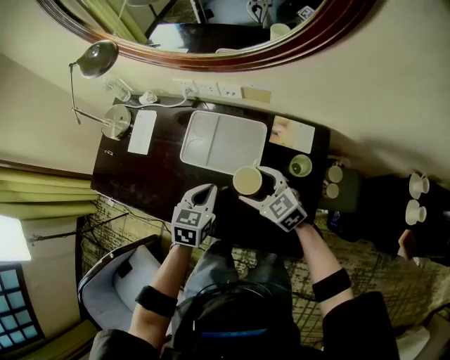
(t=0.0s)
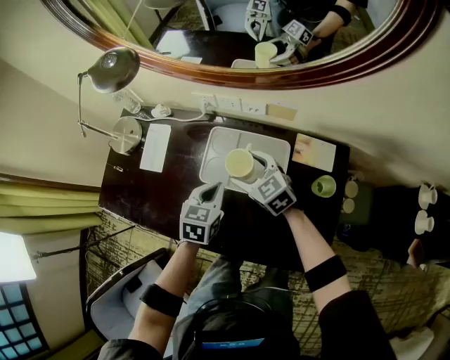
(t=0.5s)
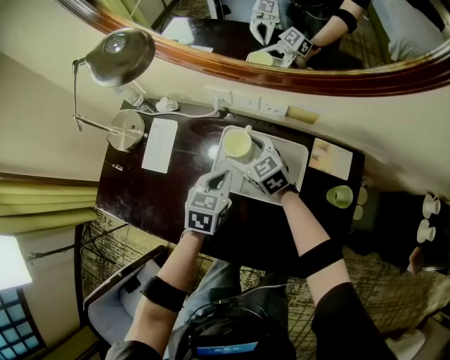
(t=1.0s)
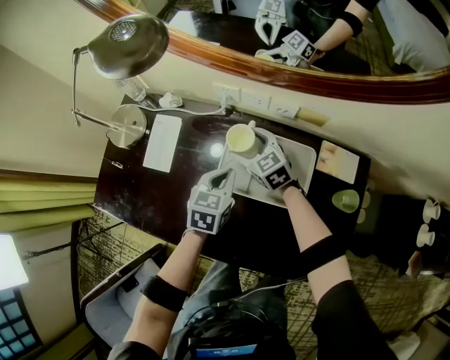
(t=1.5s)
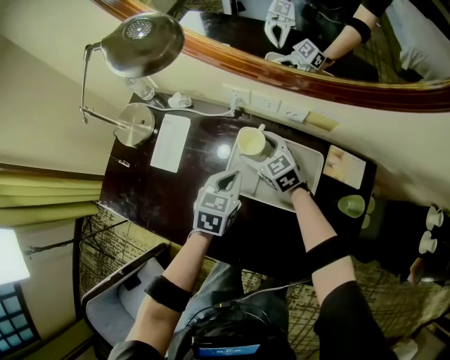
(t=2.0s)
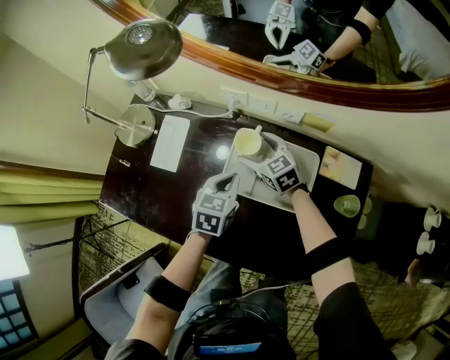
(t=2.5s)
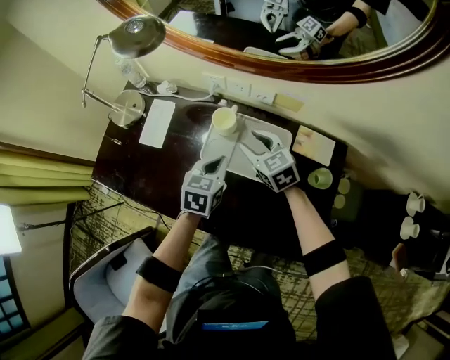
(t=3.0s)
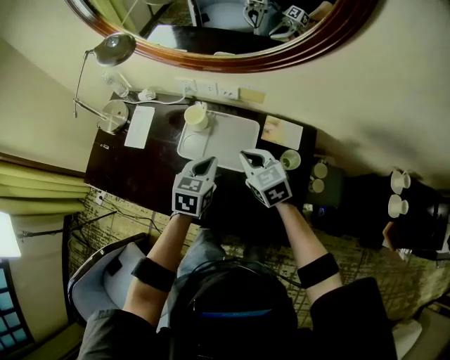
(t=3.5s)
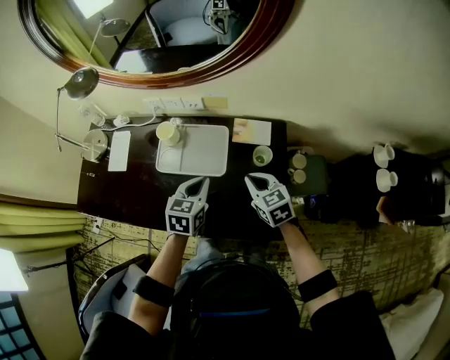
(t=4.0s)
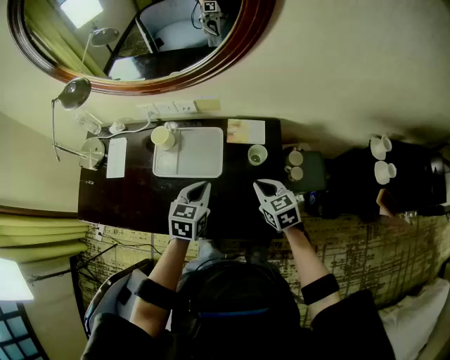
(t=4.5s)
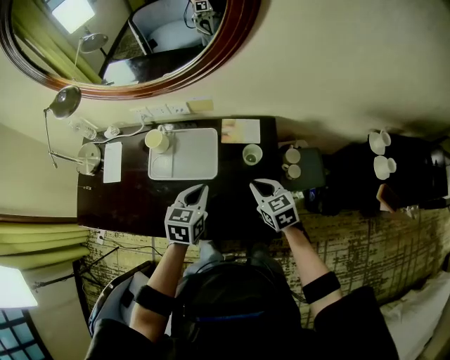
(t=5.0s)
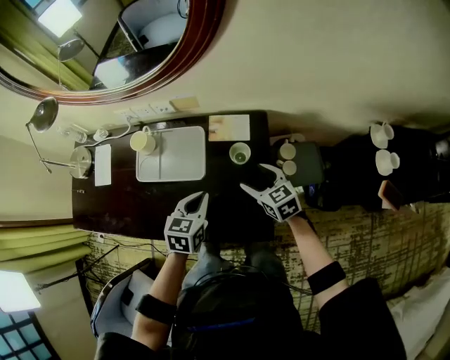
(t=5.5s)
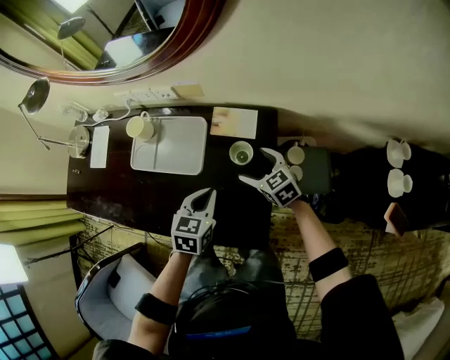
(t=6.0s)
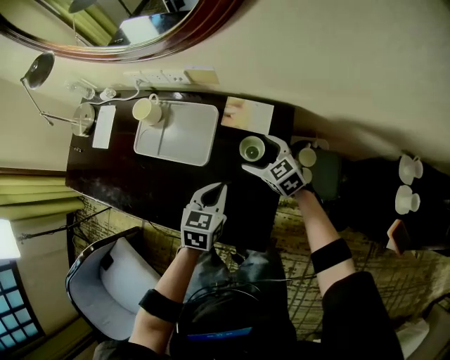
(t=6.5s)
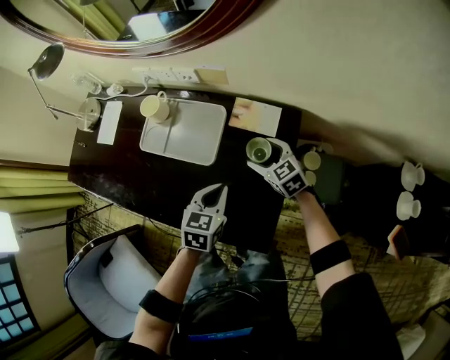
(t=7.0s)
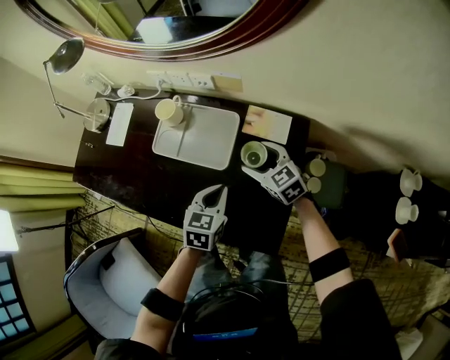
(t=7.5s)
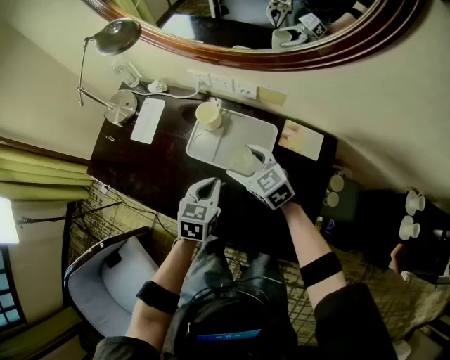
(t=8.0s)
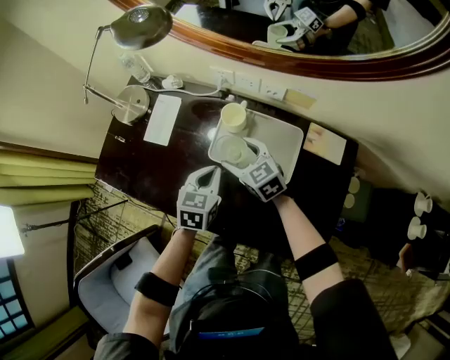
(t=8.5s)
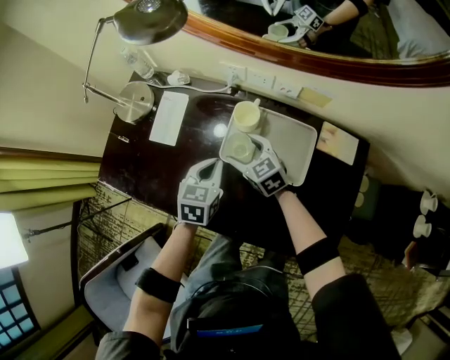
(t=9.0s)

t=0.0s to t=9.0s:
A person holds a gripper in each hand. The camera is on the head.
t=0.0s to t=2.0s: The right gripper goes roughly 30 cm forward and to the left; the left gripper is displaced forward and to the left by some 20 cm.
t=2.0s to t=4.5s: The left gripper shifts some 30 cm to the right, backward and upward. Meanwhile the right gripper heads to the right and backward, covering roughly 50 cm, swivels approximately 30 degrees, and closes.
t=4.5s to t=7.0s: The left gripper shifts approximately 15 cm to the right and downward. The right gripper is displaced forward and downward by roughly 15 cm, changes its angle by some 30 degrees, and opens its fingers.
t=7.0s to t=9.0s: The two grippers go some 40 cm to the left and forward.

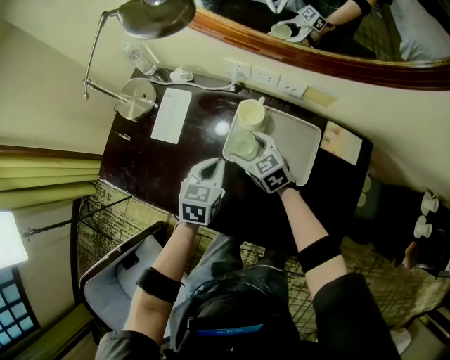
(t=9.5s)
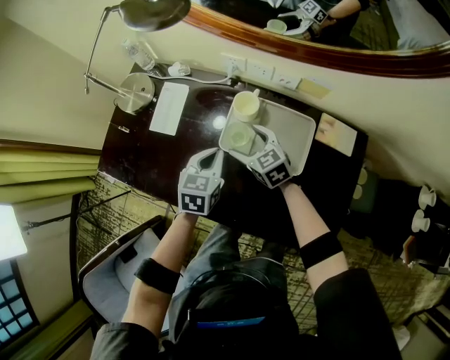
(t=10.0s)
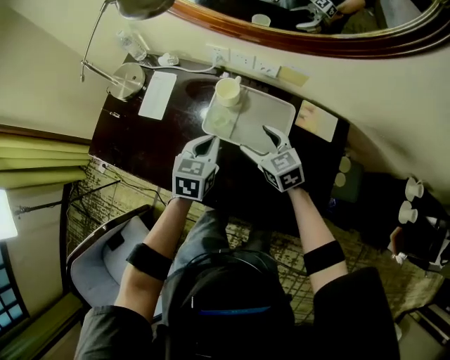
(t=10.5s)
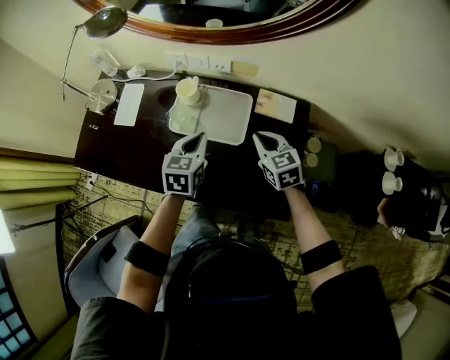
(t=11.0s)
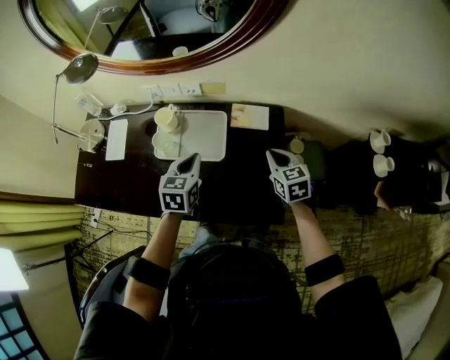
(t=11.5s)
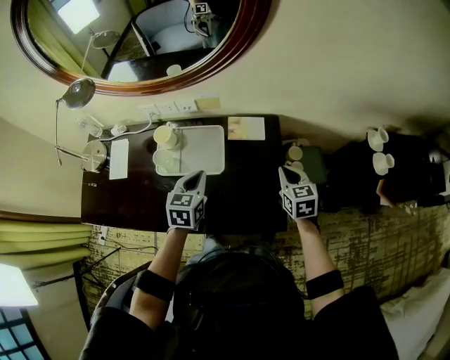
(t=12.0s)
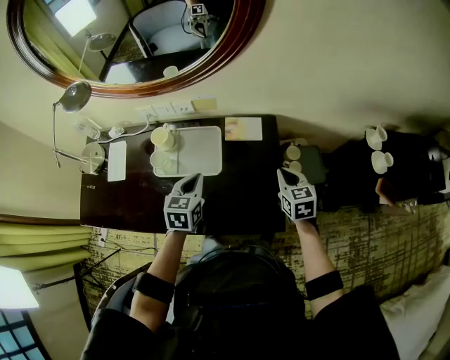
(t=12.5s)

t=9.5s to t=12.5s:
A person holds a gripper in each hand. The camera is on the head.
t=9.5s to t=11.0s: The left gripper shifts roughly 20 cm to the right, upward and backward. Meanwhile the right gripper travels to the right, backward and upward by roughly 30 cm, and closes up.
t=11.0s to t=12.5s: The left gripper moves to the right, roughly 10 cm. Meanwhile the right gripper heads to the right, covering about 20 cm, and changes its angle by roughly 30 degrees.

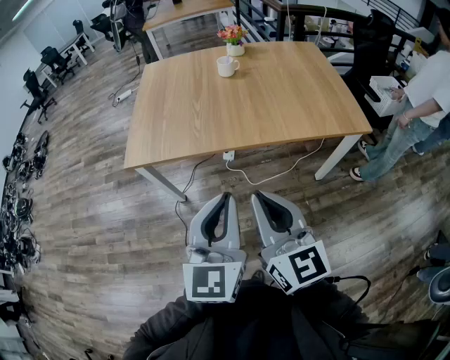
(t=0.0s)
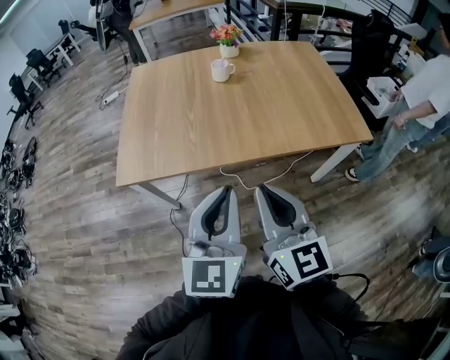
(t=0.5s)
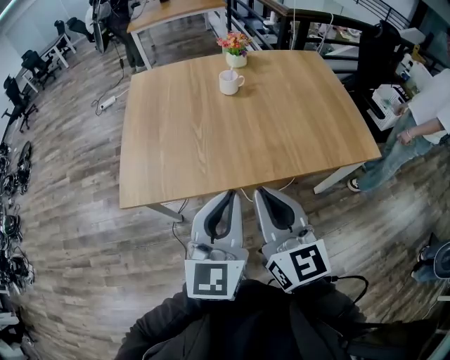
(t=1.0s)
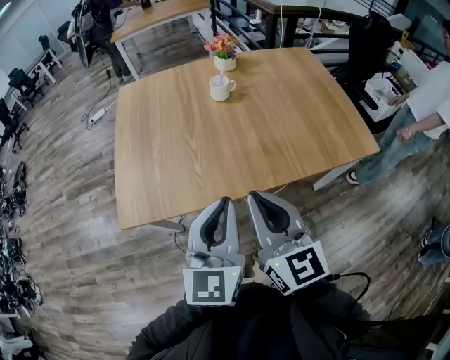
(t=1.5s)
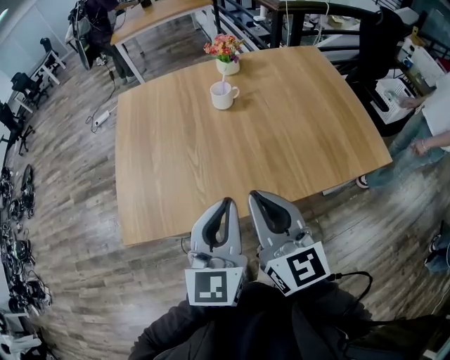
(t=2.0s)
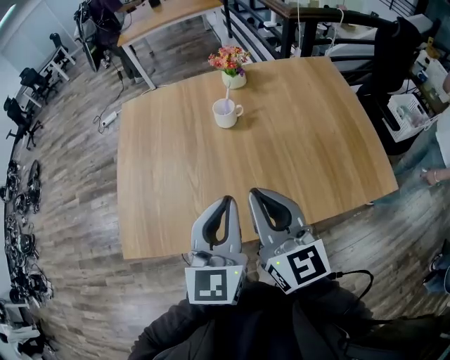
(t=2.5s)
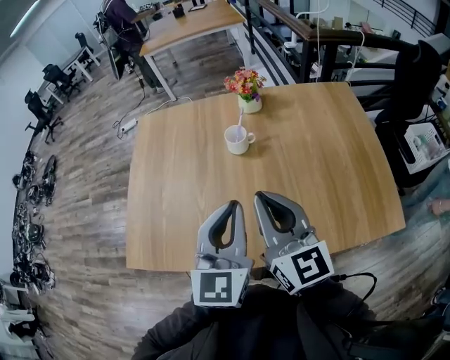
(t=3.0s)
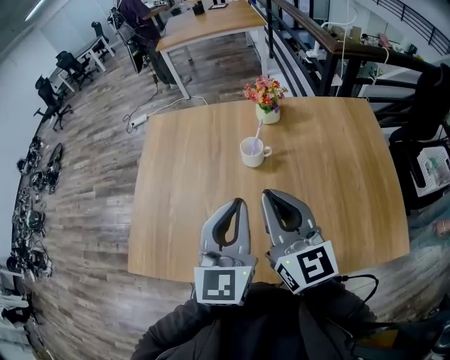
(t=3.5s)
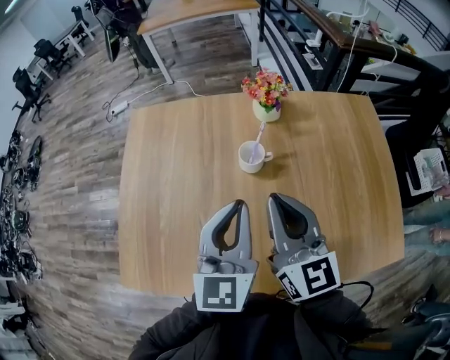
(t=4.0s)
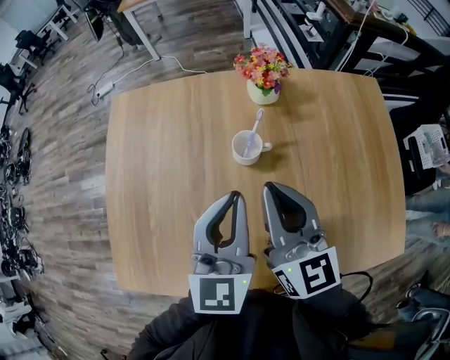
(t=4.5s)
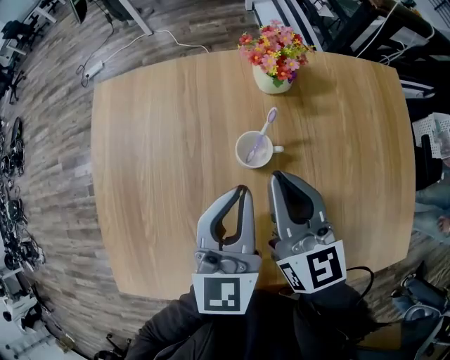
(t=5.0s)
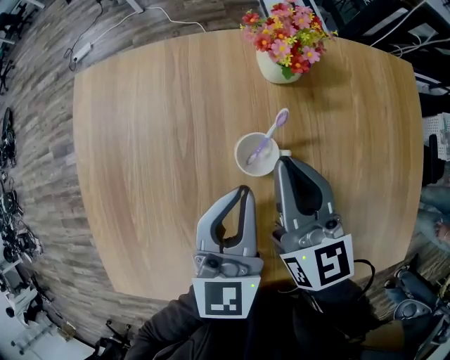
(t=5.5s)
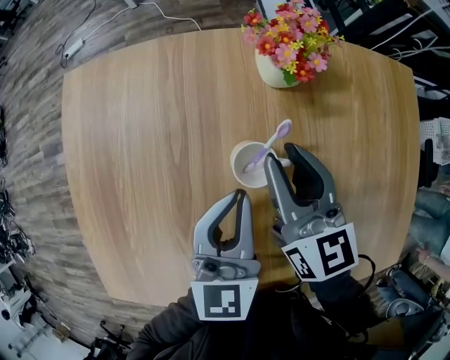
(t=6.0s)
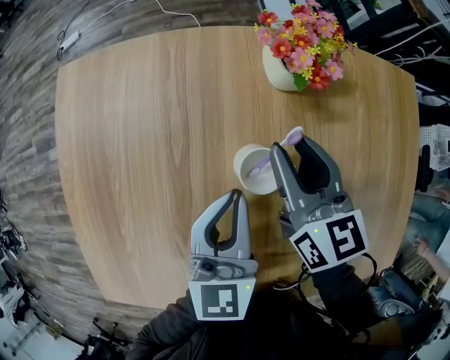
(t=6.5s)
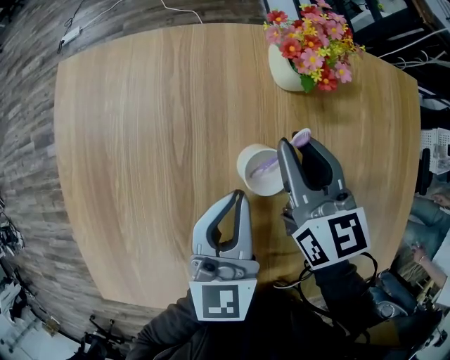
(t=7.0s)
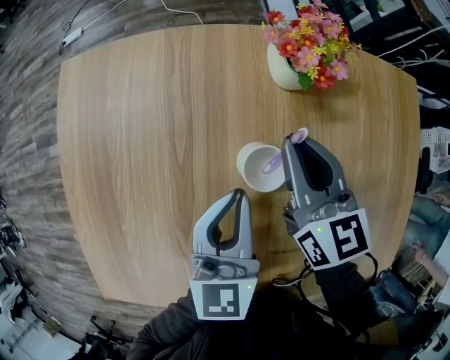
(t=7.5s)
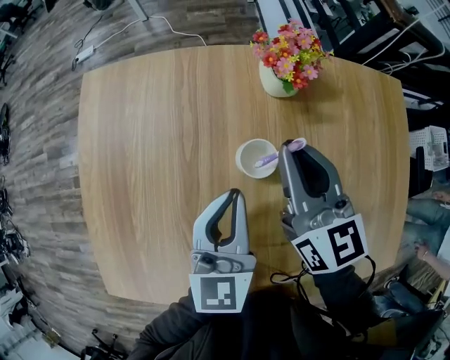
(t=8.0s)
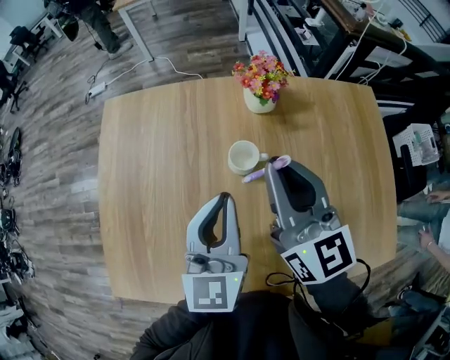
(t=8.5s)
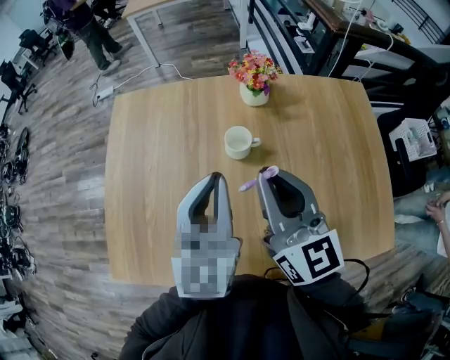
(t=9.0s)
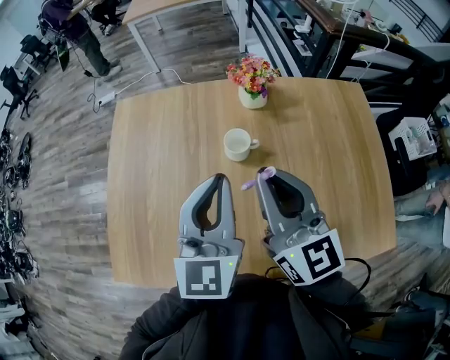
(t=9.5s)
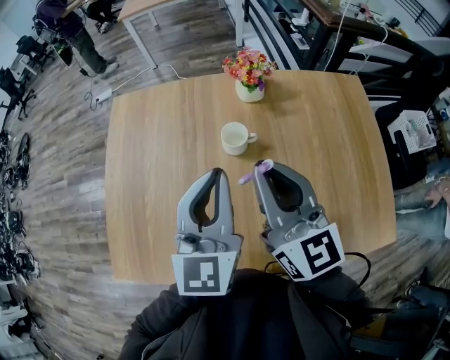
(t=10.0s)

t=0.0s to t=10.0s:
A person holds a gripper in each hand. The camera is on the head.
t=0.0s to t=2.0s: The two grippers go some 30 cm forward.
t=2.0s to t=4.0s: The grippers both shift forward by about 30 cm.
t=4.0s to t=6.0s: Both grippers move forward and downward, some 25 cm. The right gripper opens its fingers.
t=6.0s to t=8.0s: The right gripper travels upward by roughly 5 cm, and closes up.
t=8.0s to t=10.0s: The left gripper heads upward and backward, covering some 20 cm, while the right gripper goes some 20 cm backward and upward.

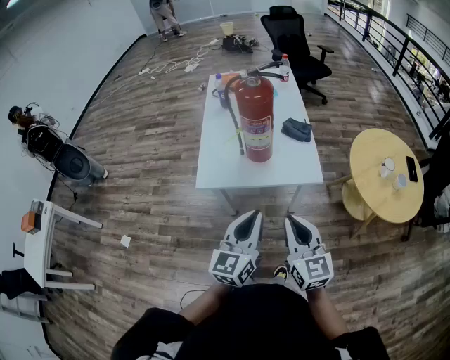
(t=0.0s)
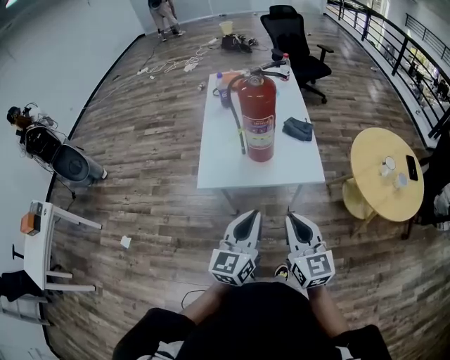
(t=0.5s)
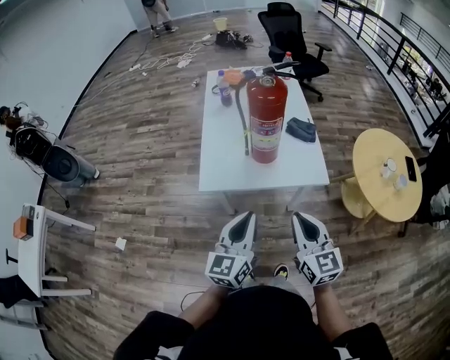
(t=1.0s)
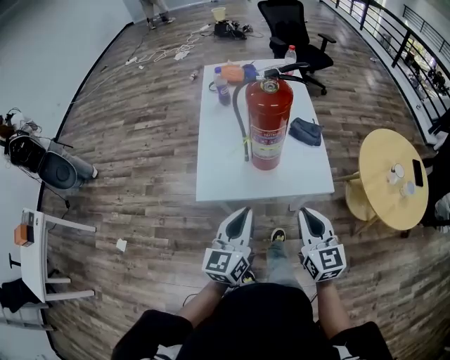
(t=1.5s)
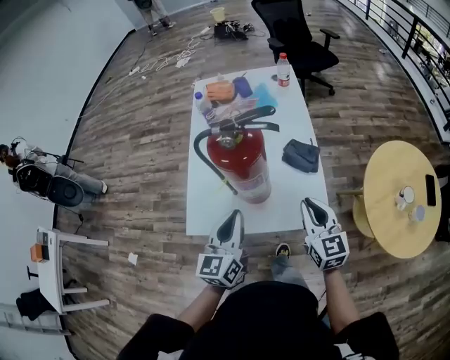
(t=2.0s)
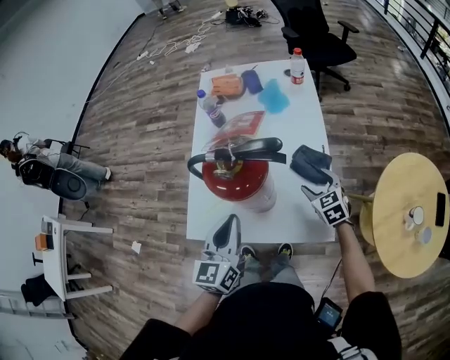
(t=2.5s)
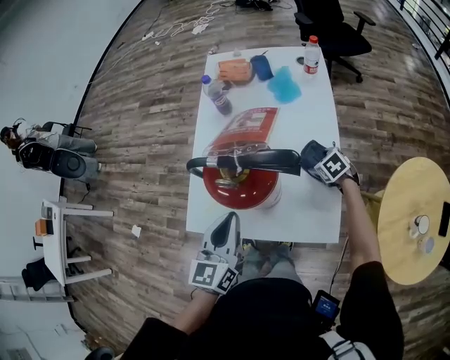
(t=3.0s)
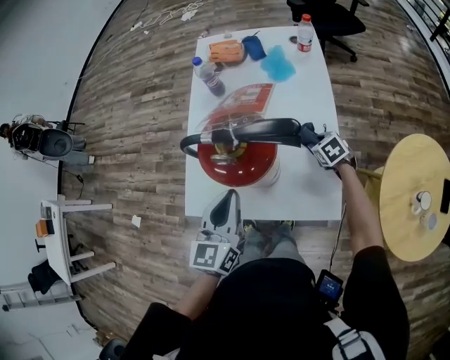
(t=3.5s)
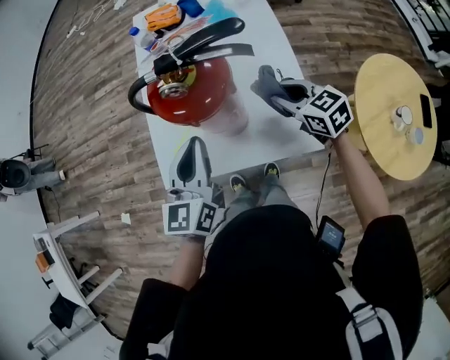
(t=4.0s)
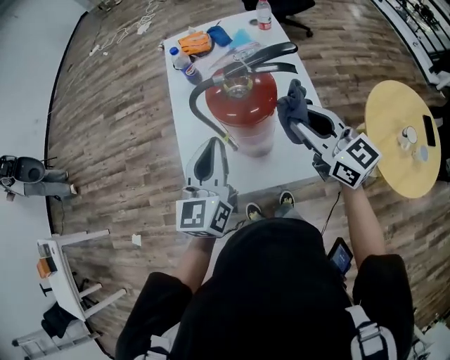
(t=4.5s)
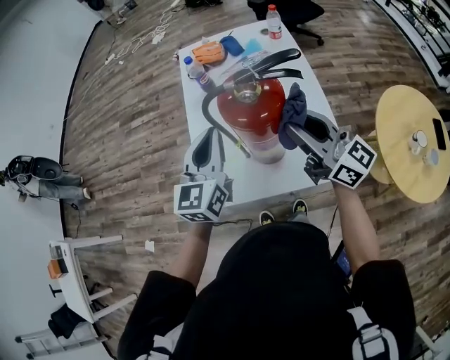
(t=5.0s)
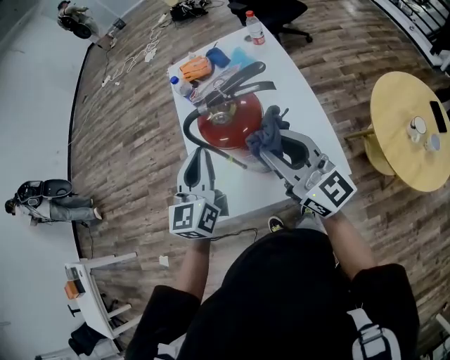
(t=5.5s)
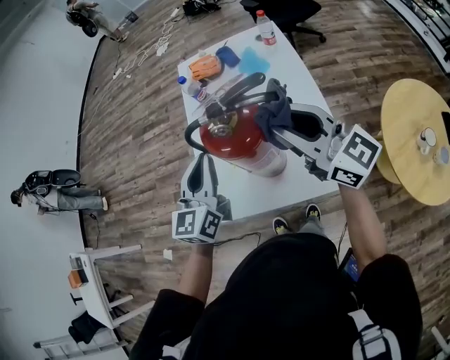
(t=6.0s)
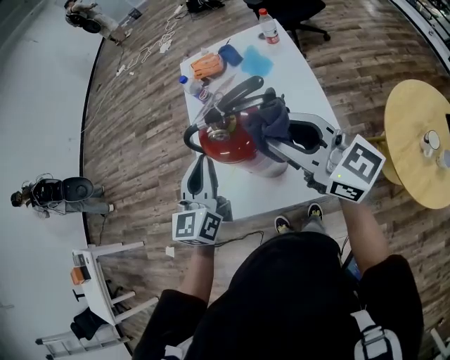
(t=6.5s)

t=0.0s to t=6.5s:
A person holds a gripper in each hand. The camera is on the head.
t=0.0s to t=2.0s: The two grippers go approximately 30 cm forward.
t=2.0s to t=4.5s: The right gripper goes approximately 10 cm forward, moves some 25 cm downward and comes back, rotates approximately 20 degrees, and opens, then closes once more. The left gripper shifts about 10 cm forward and upward.
t=4.5s to t=6.5s: The left gripper travels forward by approximately 5 cm; the right gripper travels upward by approximately 10 cm.
